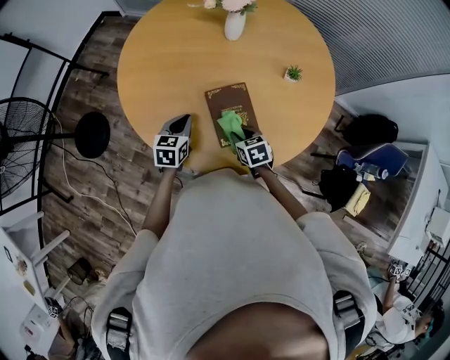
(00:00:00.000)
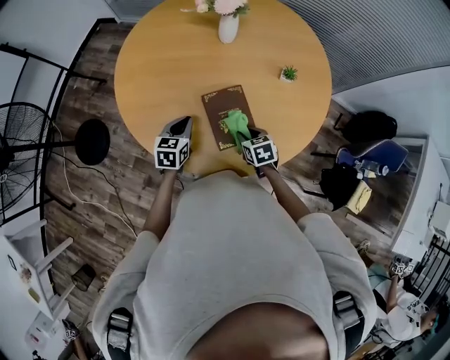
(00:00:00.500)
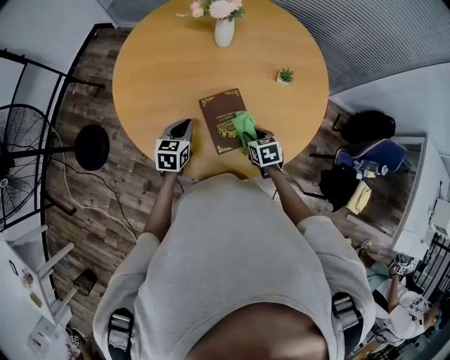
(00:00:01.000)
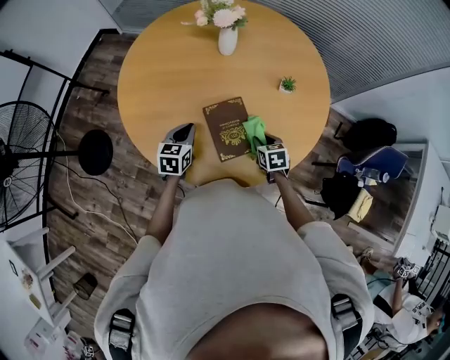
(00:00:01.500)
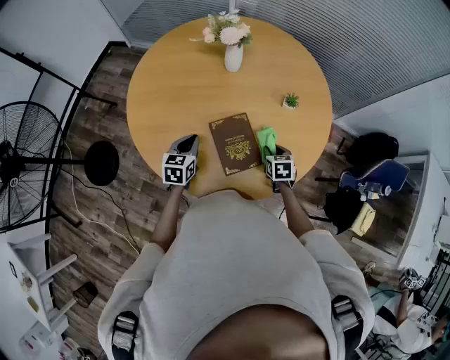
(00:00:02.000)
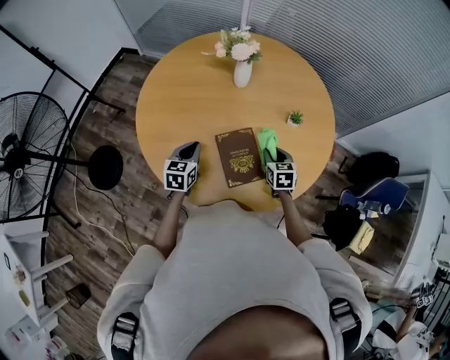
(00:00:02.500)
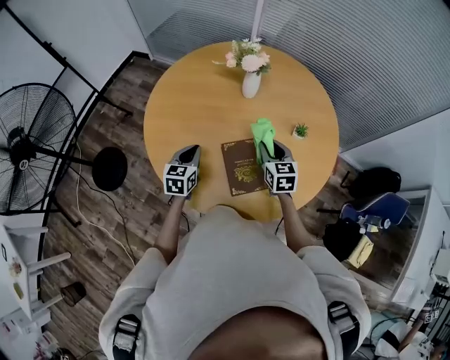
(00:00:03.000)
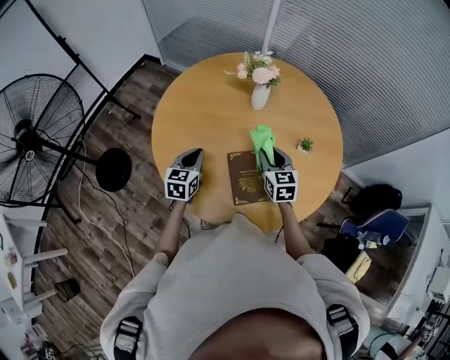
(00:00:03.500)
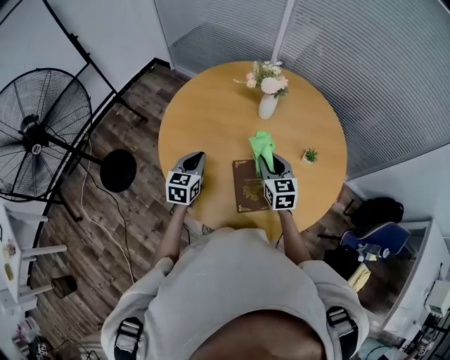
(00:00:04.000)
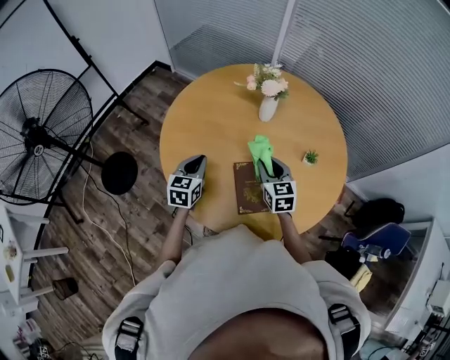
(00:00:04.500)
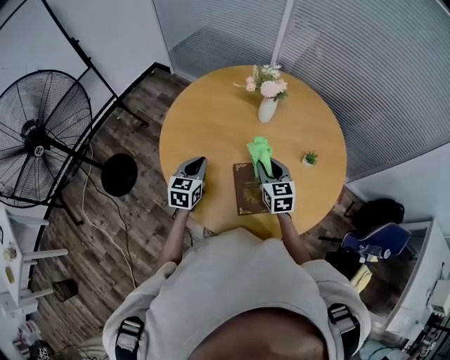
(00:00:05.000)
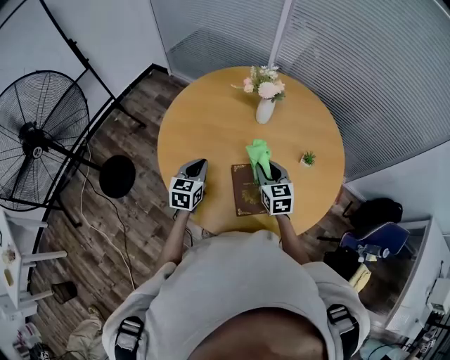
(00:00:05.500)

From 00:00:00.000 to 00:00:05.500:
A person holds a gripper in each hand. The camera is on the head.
From 00:00:00.000 to 00:00:02.000: The right gripper heads to the right, covering some 15 cm, and swivels some 20 degrees.
From 00:00:02.000 to 00:00:03.500: The left gripper is displaced upward and to the left by approximately 10 cm; the right gripper is displaced upward, to the left and forward by approximately 20 cm, and turns by approximately 30 degrees.
From 00:00:03.500 to 00:00:05.500: The grippers stay close to where they were, moving slightly.

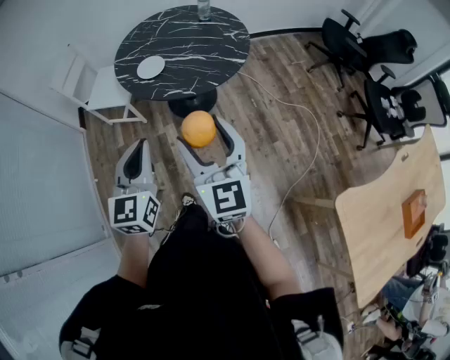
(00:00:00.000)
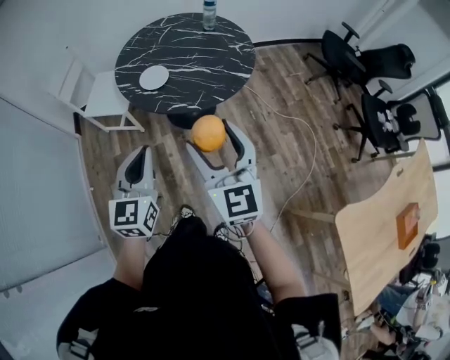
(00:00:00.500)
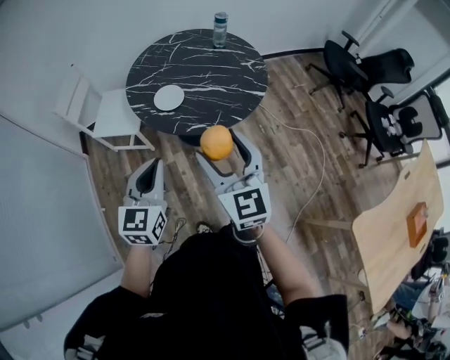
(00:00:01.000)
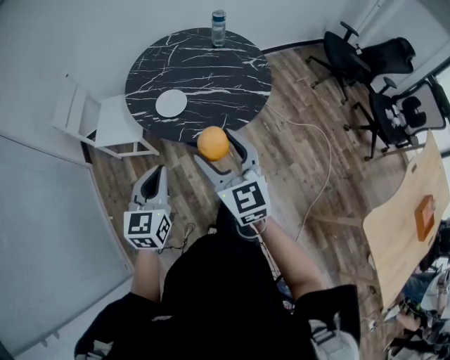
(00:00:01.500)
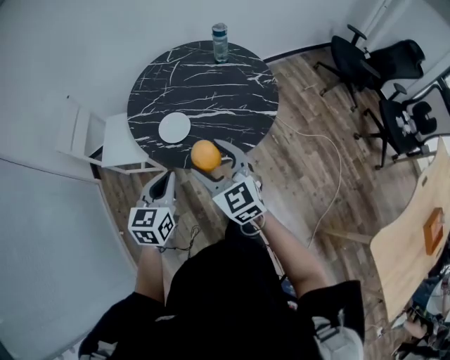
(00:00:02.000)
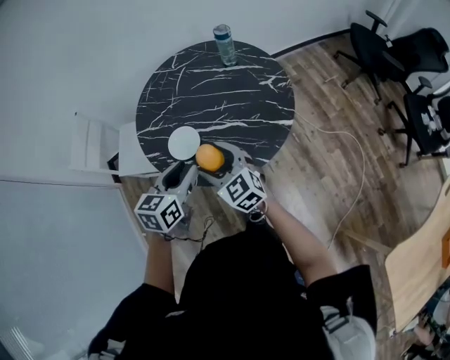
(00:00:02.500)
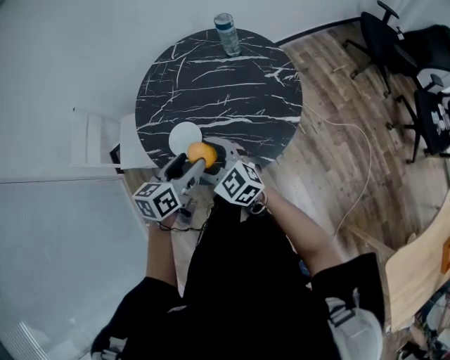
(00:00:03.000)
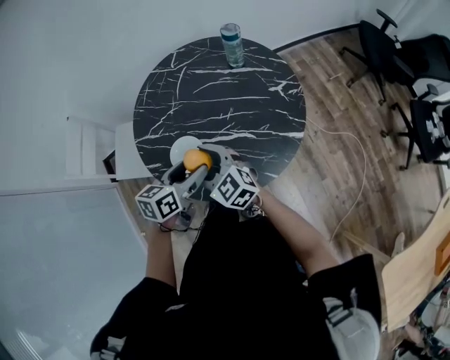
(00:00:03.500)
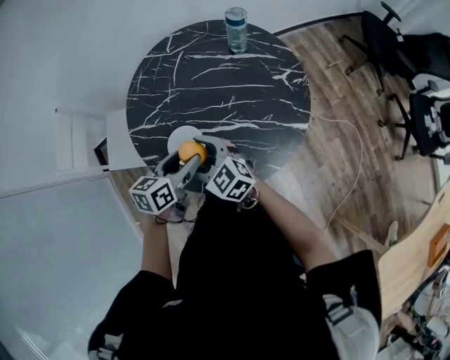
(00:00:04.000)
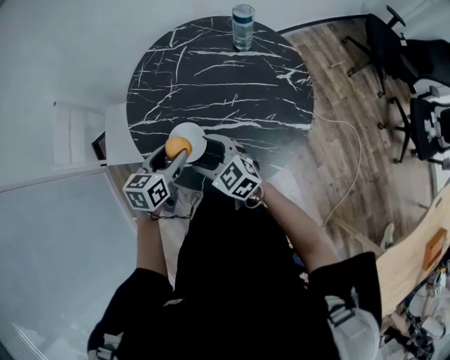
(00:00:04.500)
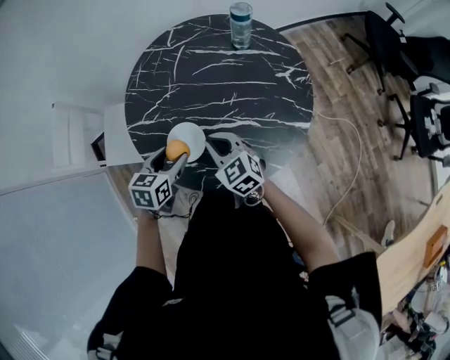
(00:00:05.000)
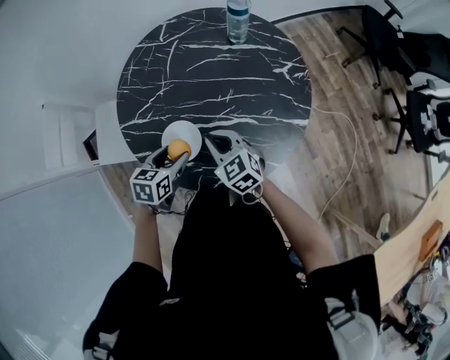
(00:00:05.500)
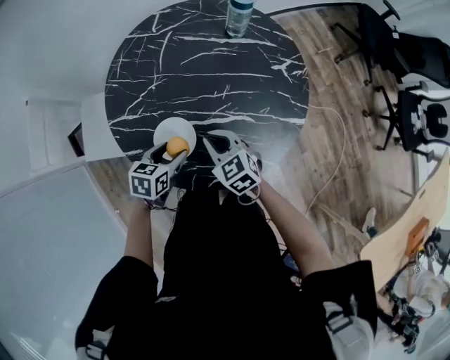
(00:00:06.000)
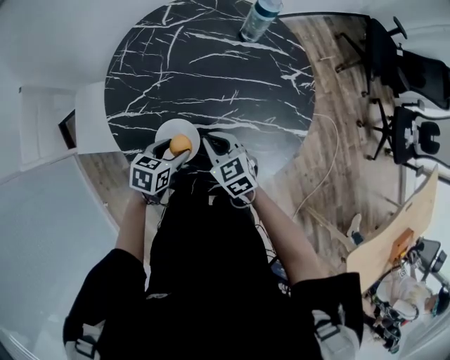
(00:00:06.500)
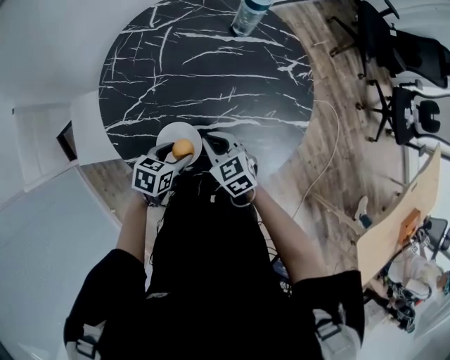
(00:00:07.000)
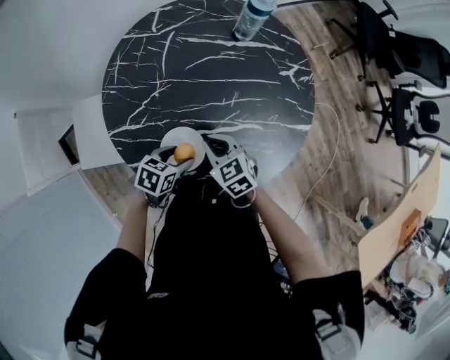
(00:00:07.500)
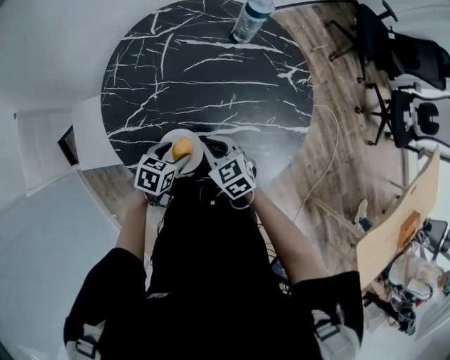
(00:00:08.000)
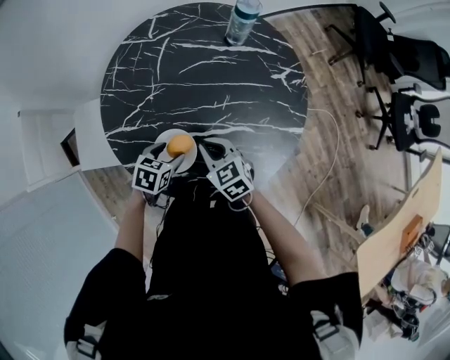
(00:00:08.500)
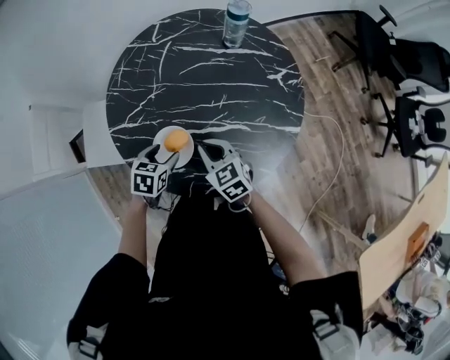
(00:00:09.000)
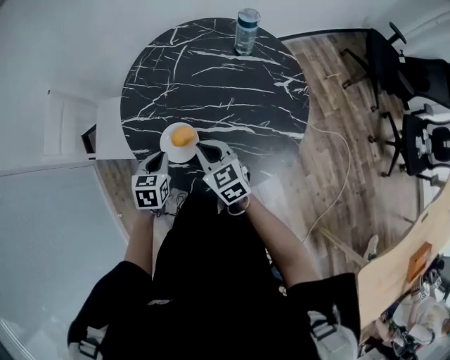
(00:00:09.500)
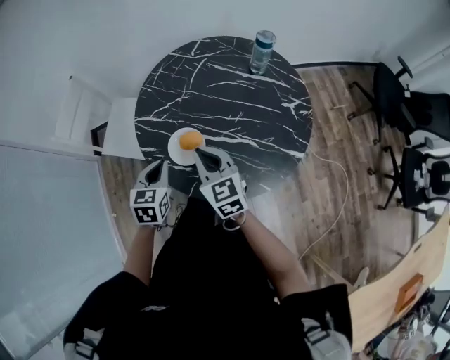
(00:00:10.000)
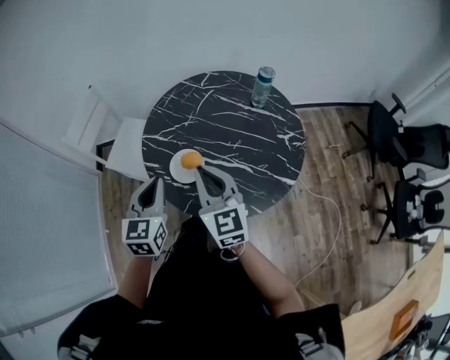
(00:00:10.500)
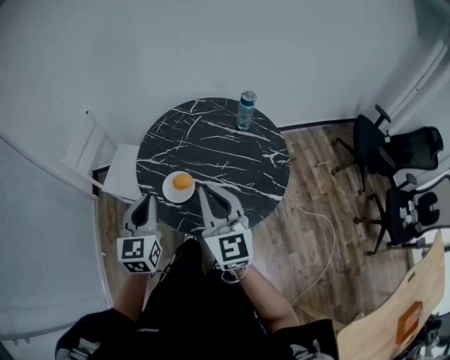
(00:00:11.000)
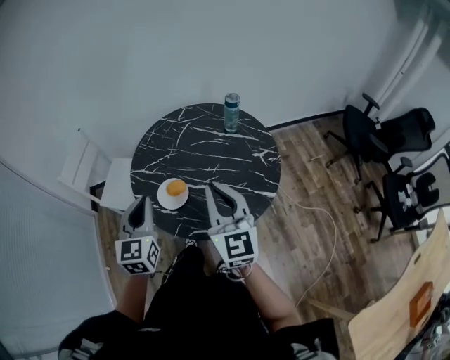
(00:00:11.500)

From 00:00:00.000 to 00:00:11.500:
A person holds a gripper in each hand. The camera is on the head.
From 00:00:00.000 to 00:00:02.000: The right gripper moves forward and to the left, about 30 cm. Meanwhile the left gripper travels forward by some 25 cm, and turns by some 20 degrees.
From 00:00:02.000 to 00:00:04.000: The left gripper moves forward, roughly 25 cm, changes its angle by approximately 30 degrees, and opens its fingers. Meanwhile the right gripper moves forward and downward, approximately 25 cm, and changes its angle by approximately 20 degrees.
From 00:00:04.000 to 00:00:06.000: The right gripper heads downward and to the right, covering about 10 cm, changes its angle by roughly 20 degrees, and closes its fingers; the left gripper goes roughly 10 cm downward, and swivels some 20 degrees.
From 00:00:06.000 to 00:00:07.500: The right gripper ends up some 5 cm from where it was.
From 00:00:07.500 to 00:00:09.500: The grippers both shift upward by about 10 cm. The left gripper rotates approximately 40 degrees, and closes its fingers.
From 00:00:09.500 to 00:00:11.500: The two grippers go about 30 cm upward and backward. The right gripper tilts its fingers approximately 30 degrees upward. The left gripper points its fingers about 40 degrees further upward.

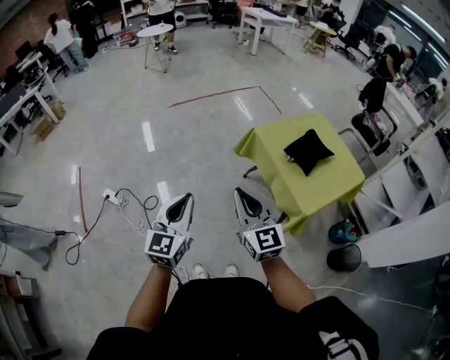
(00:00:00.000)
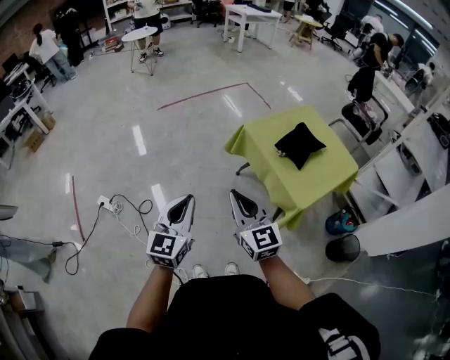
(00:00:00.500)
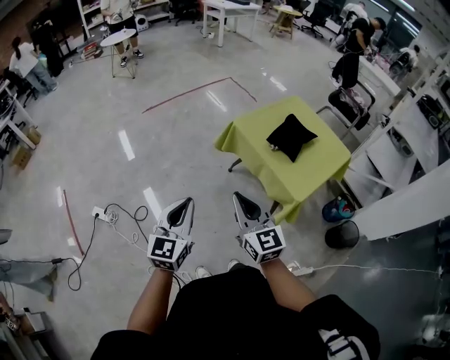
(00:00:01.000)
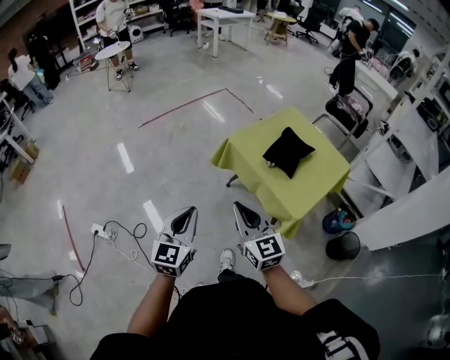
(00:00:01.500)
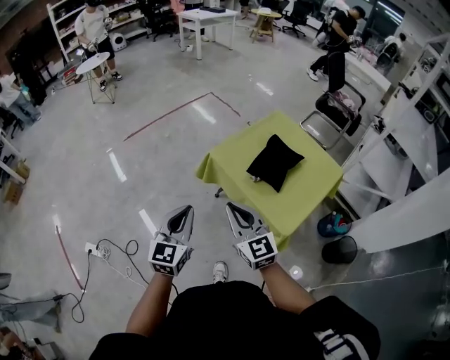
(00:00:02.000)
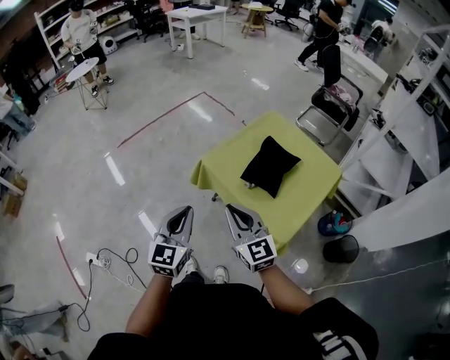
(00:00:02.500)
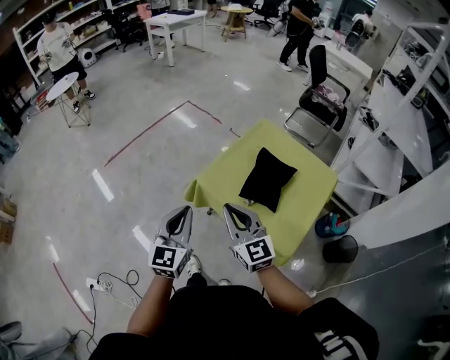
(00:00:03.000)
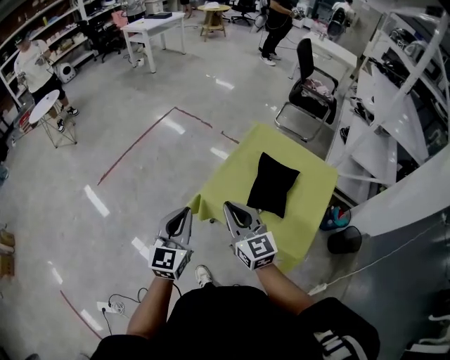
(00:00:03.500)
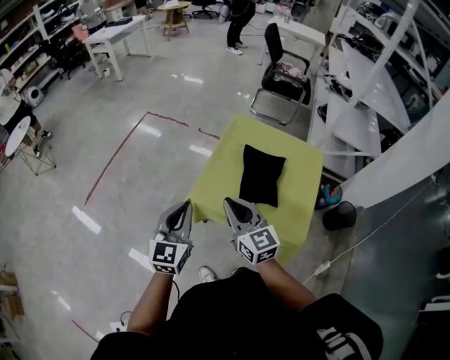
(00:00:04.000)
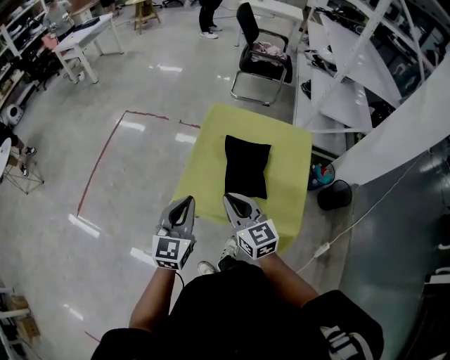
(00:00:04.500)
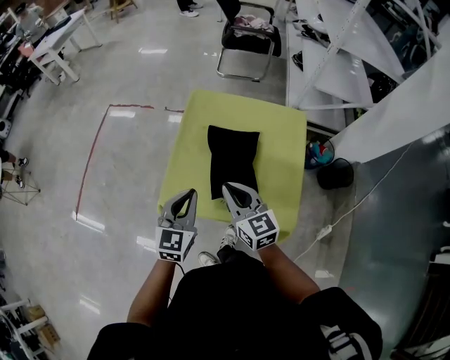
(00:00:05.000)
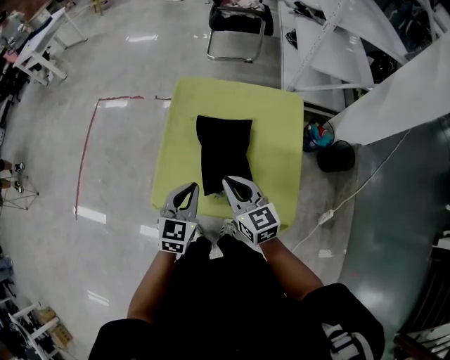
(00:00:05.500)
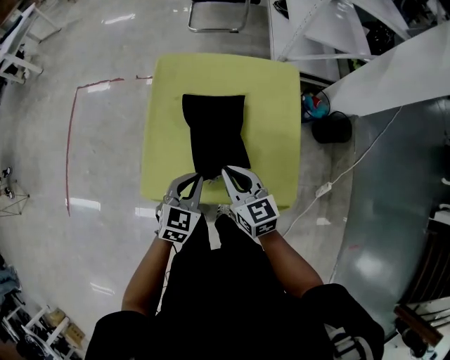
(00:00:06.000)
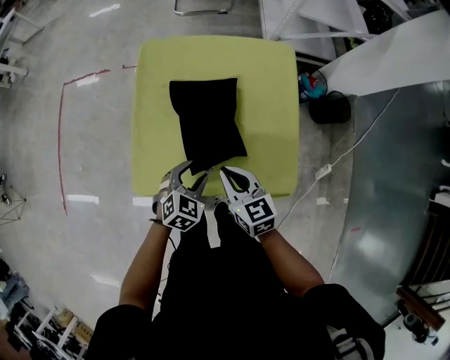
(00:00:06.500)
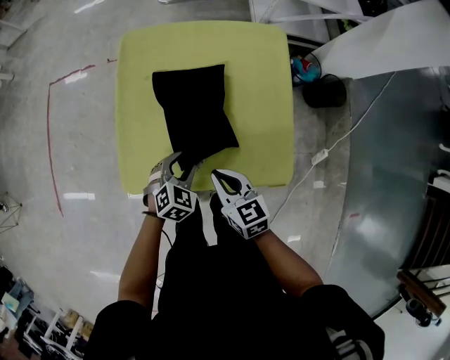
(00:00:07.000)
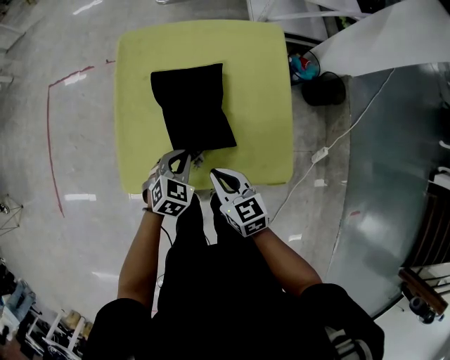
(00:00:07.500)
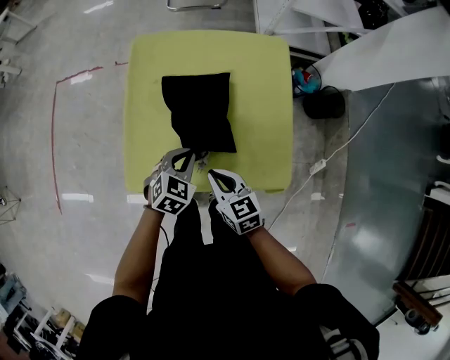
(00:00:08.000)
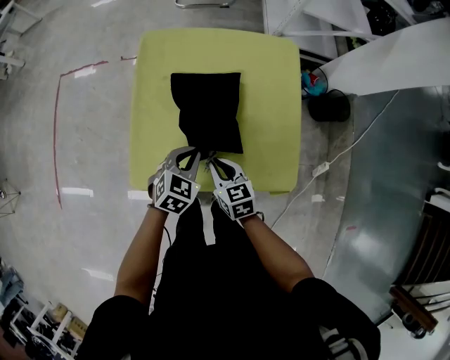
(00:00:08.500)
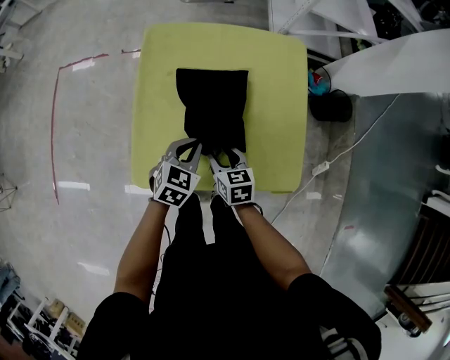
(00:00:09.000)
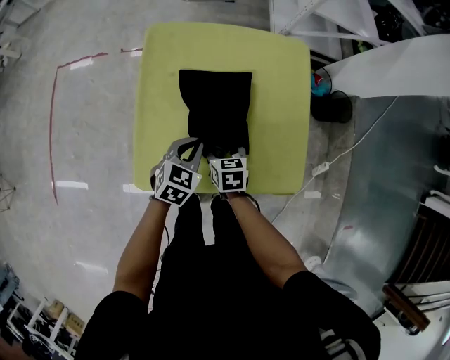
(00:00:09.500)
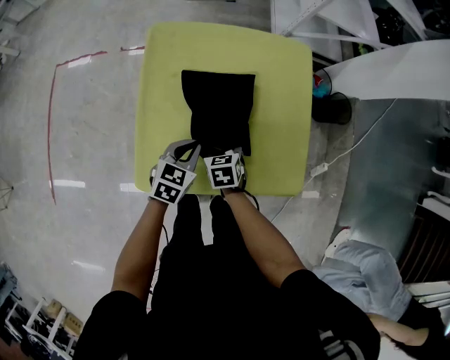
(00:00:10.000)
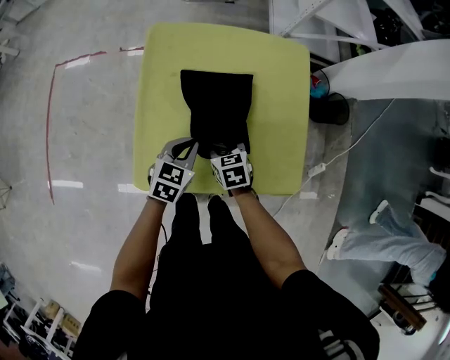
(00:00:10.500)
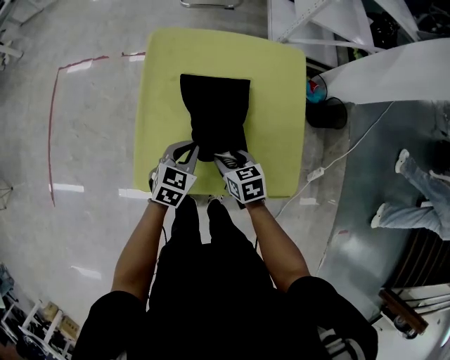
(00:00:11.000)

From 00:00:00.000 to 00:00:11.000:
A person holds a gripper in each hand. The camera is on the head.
From 00:00:00.000 to 00:00:02.000: Both grippers move forward and to the right, roughly 20 cm.
From 00:00:02.000 to 00:00:03.500: Both grippers move forward, approximately 25 cm.
From 00:00:03.500 to 00:00:05.500: The left gripper shifts by some 30 cm, and rotates approximately 40 degrees. The right gripper changes place by roughly 25 cm, and rotates some 30 degrees.
From 00:00:05.500 to 00:00:07.500: The left gripper moves downward, some 15 cm, rotates roughly 30 degrees, and opens and closes again. The right gripper heads downward and backward, covering about 15 cm.
From 00:00:07.500 to 00:00:09.000: The left gripper changes place by about 5 cm, while the right gripper is displaced downward and forward by about 10 cm, and opens its fingers.
From 00:00:09.000 to 00:00:11.000: The grippers make only small movements.
